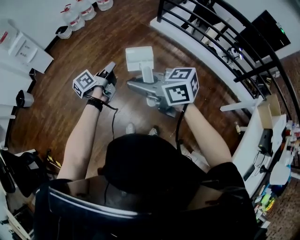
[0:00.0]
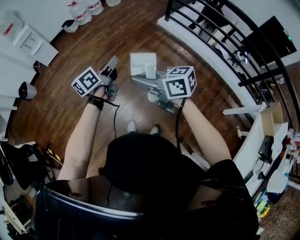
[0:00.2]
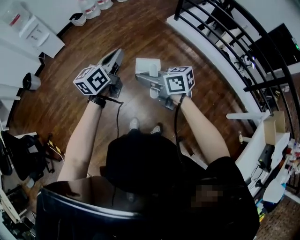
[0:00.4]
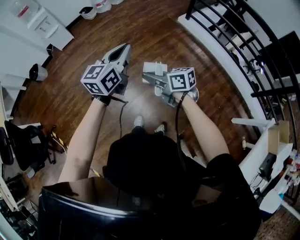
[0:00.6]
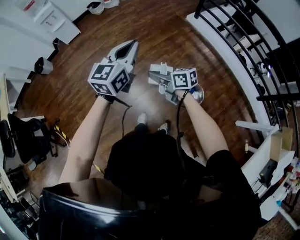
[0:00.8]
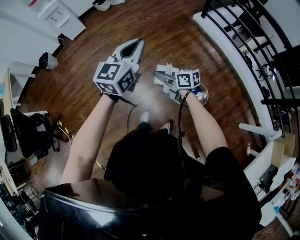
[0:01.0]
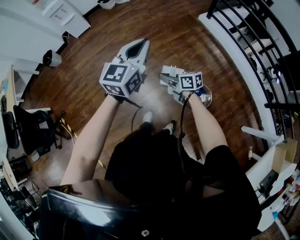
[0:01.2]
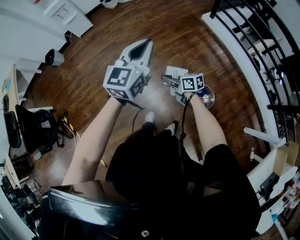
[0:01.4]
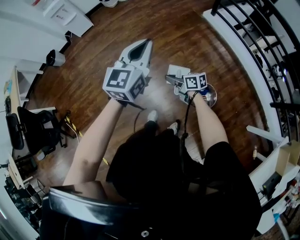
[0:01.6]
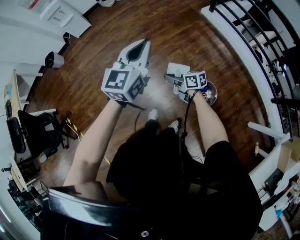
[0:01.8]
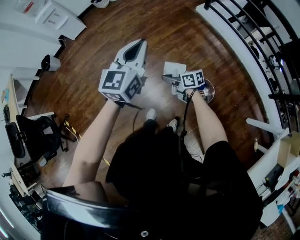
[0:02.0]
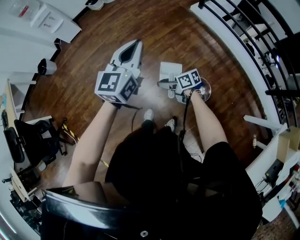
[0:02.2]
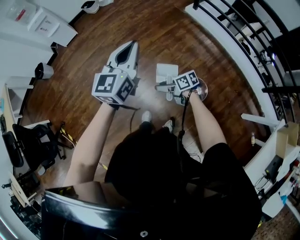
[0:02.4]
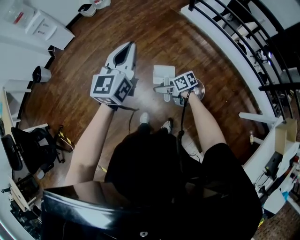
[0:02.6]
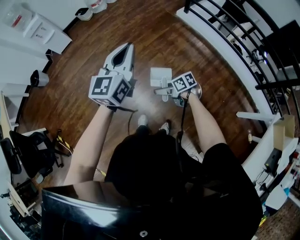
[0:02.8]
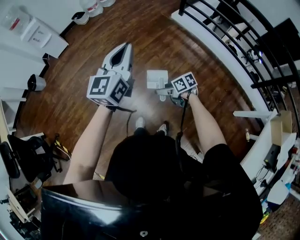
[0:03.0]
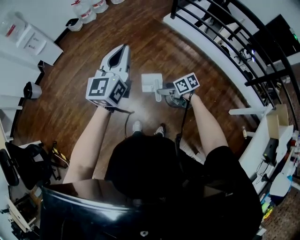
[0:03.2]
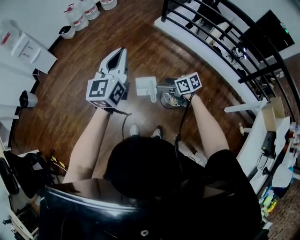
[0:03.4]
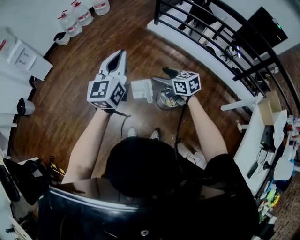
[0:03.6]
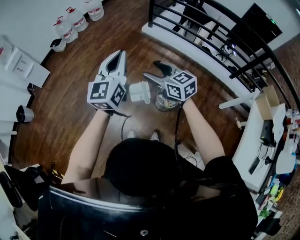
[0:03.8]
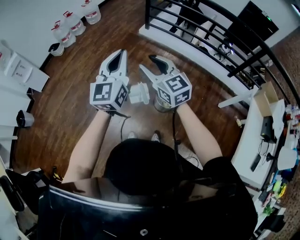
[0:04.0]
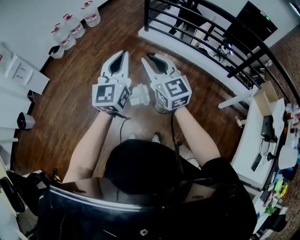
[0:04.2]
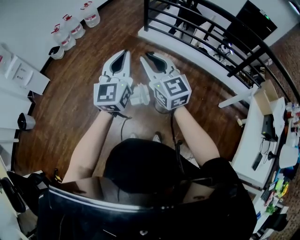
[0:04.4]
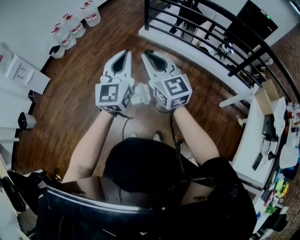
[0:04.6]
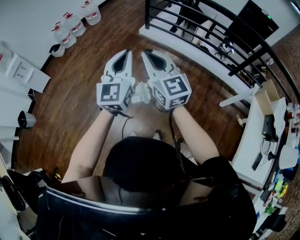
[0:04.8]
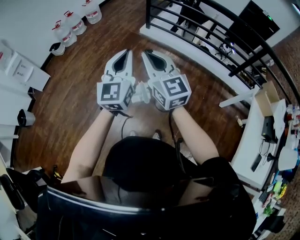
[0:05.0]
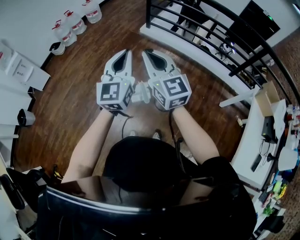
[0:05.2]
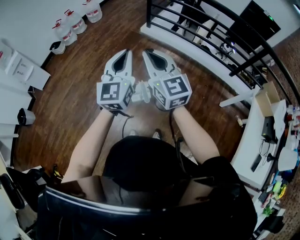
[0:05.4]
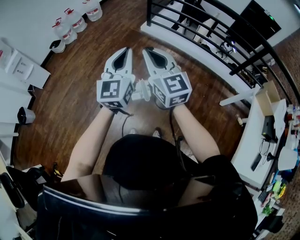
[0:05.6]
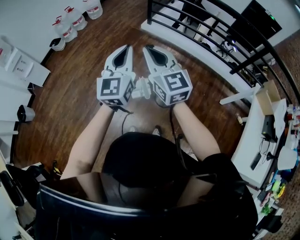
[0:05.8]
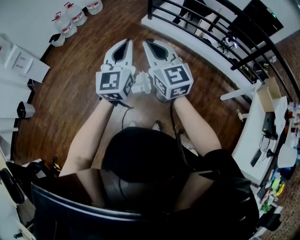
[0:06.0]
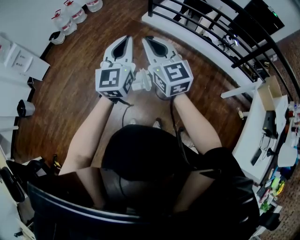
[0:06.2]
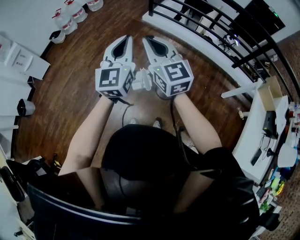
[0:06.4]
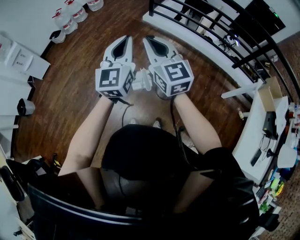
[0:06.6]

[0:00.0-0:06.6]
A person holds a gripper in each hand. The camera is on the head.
0:00.0 to 0:01.6: The left gripper heads upward, covering approximately 10 cm, and twists some 60 degrees clockwise, seen from behind, while the right gripper is displaced downward by about 30 cm, and rotates roughly 20 degrees.
0:01.6 to 0:03.2: The right gripper is displaced backward by about 10 cm, turns by about 20 degrees, and opens. The left gripper changes place by approximately 5 cm.
0:03.2 to 0:05.0: The right gripper travels upward by some 35 cm, points its fingers roughly 40 degrees further upward, and closes its fingers, while the left gripper shifts by about 10 cm.
0:05.0 to 0:06.6: Both grippers stay put.

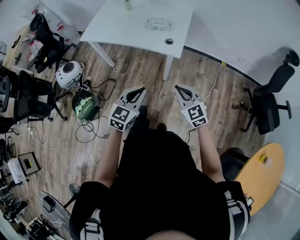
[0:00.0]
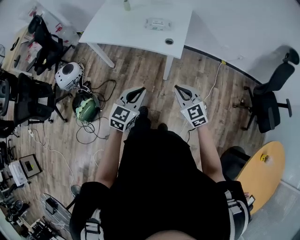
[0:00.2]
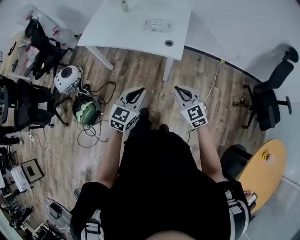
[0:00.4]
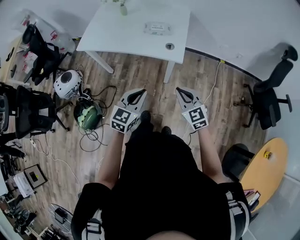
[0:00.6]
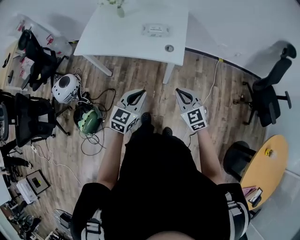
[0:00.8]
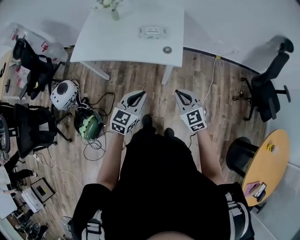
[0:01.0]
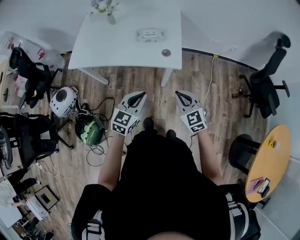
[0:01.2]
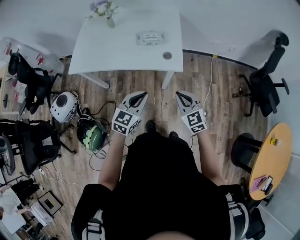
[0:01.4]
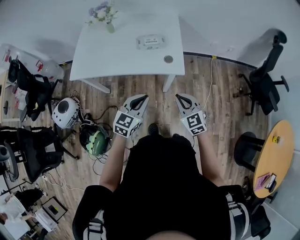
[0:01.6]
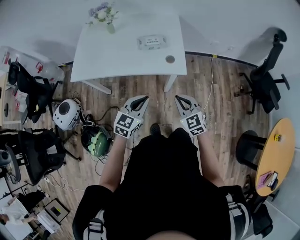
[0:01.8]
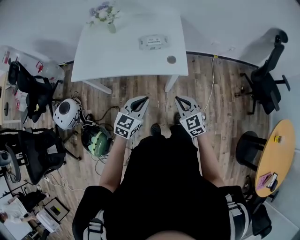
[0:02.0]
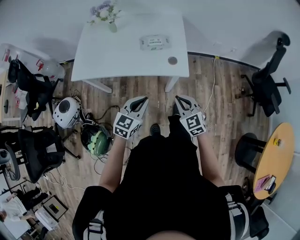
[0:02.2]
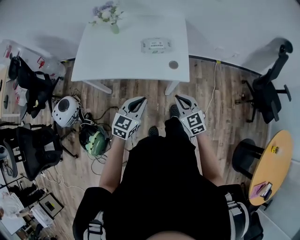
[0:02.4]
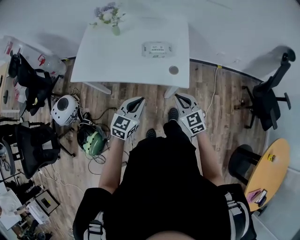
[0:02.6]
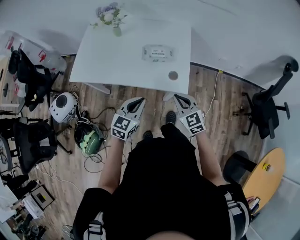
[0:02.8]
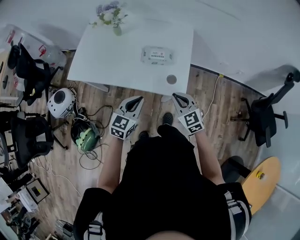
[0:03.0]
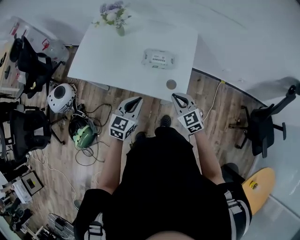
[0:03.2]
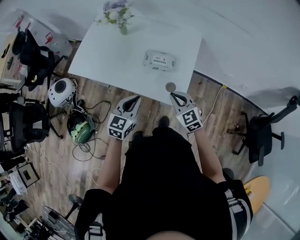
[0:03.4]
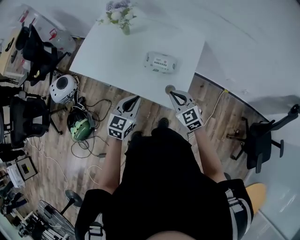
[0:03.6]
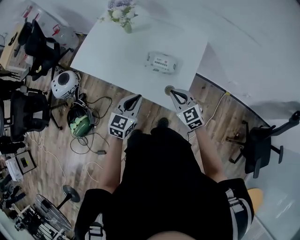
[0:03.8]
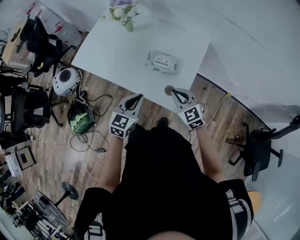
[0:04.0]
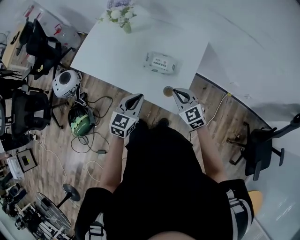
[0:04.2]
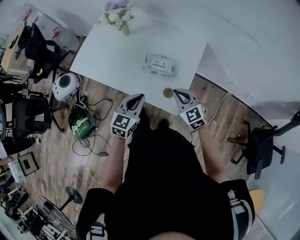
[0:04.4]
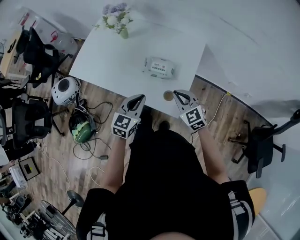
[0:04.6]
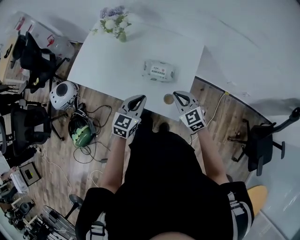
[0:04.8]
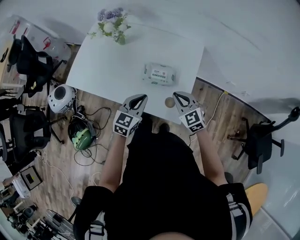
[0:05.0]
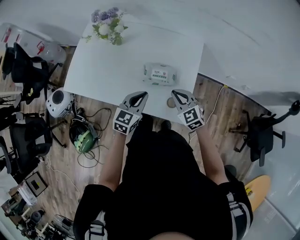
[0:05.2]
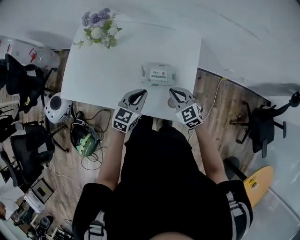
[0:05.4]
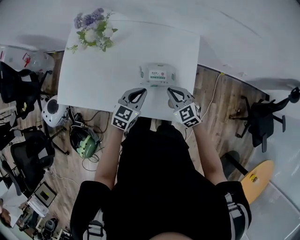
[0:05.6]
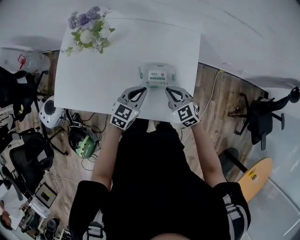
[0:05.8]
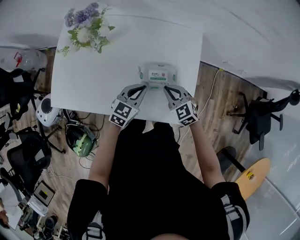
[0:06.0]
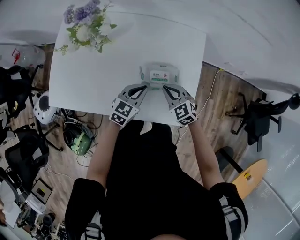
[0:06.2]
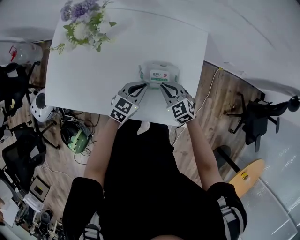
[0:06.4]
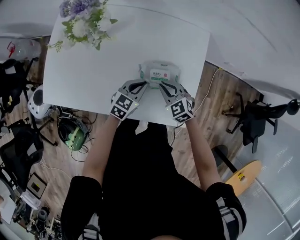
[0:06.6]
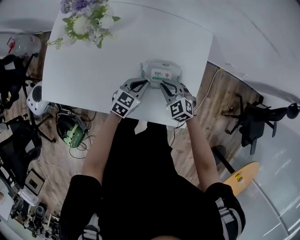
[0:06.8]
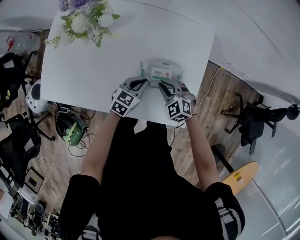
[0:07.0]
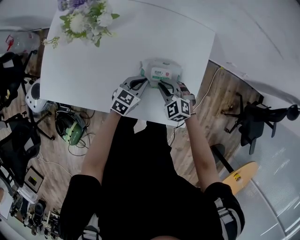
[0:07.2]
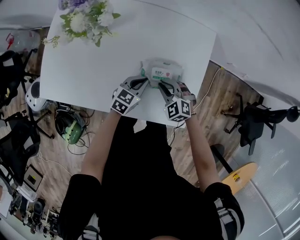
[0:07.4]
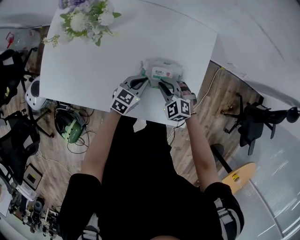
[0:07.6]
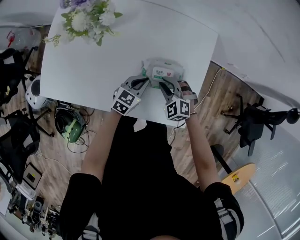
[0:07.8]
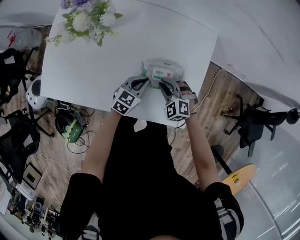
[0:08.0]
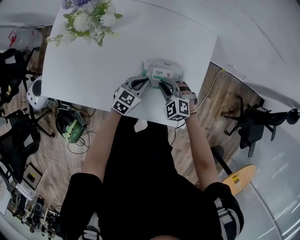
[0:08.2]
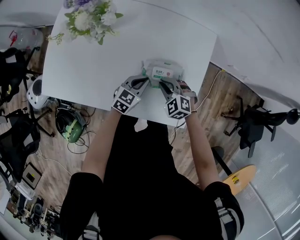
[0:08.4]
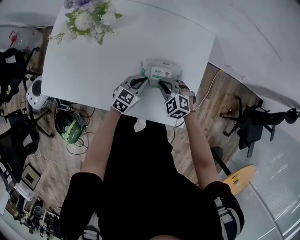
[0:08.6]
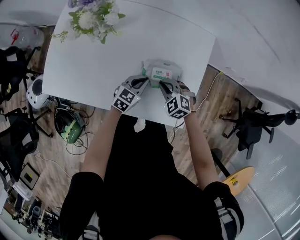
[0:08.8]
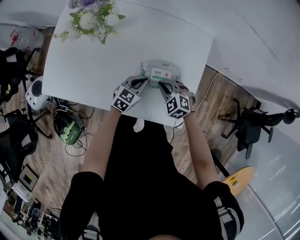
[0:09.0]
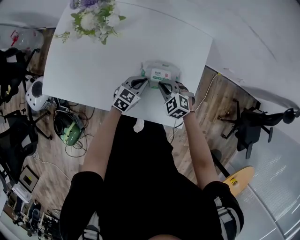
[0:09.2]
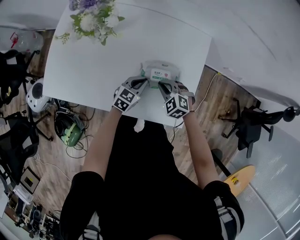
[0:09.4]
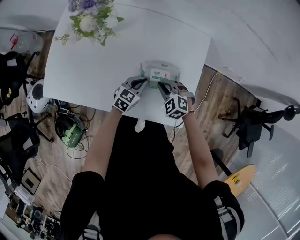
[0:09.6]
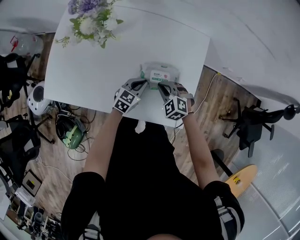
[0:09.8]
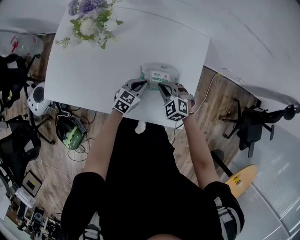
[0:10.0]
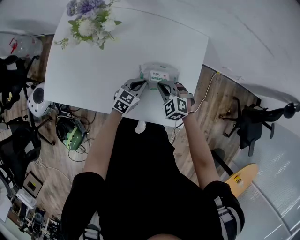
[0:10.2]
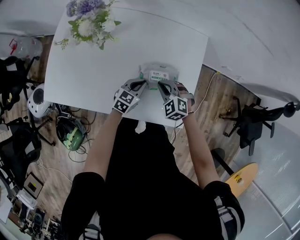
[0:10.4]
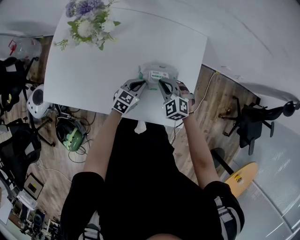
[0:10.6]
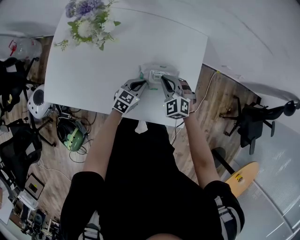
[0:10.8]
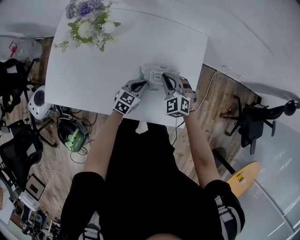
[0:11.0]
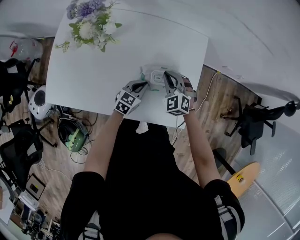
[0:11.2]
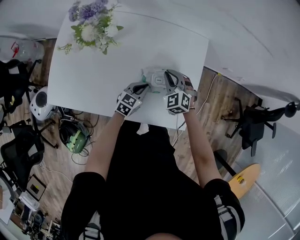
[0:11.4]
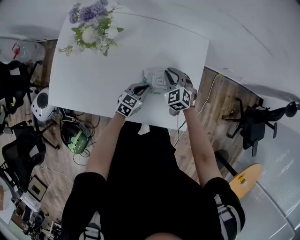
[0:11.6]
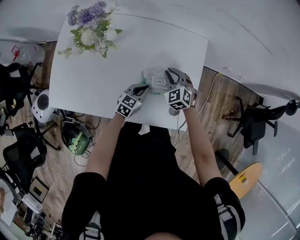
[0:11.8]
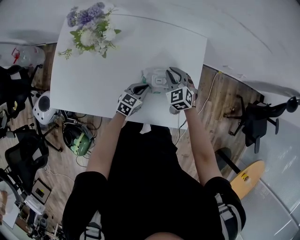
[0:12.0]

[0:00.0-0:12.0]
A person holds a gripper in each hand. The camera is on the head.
0:00.0 to 0:01.6: The grippers both shift forward and to the left by some 20 cm.
0:01.6 to 0:03.0: Both grippers move forward, about 20 cm.
0:03.0 to 0:04.4: The left gripper goes roughly 10 cm to the right and forward; the right gripper moves forward and to the right, approximately 15 cm.
0:04.4 to 0:06.0: The left gripper shifts some 25 cm forward and downward, and turns by some 30 degrees, while the right gripper shifts some 25 cm forward, downward and to the left.
0:06.0 to 0:07.6: The grippers both shift downward by about 10 cm. The right gripper turns by some 20 degrees.
0:07.6 to 0:10.4: The grippers move only a little.
0:10.4 to 0:12.0: The right gripper heads forward, covering about 10 cm, and changes its angle by roughly 20 degrees.

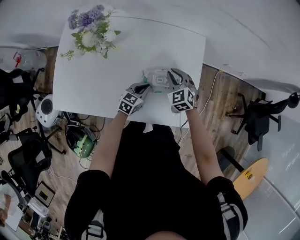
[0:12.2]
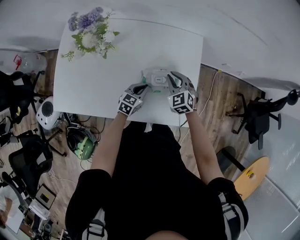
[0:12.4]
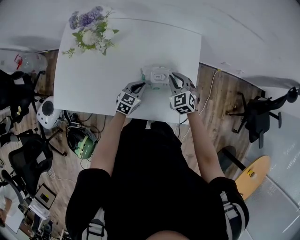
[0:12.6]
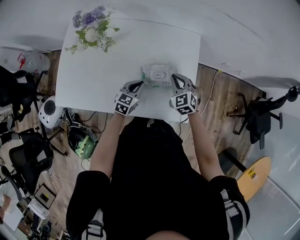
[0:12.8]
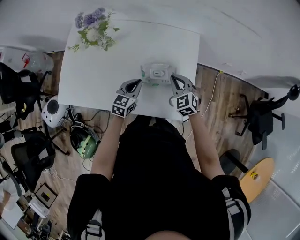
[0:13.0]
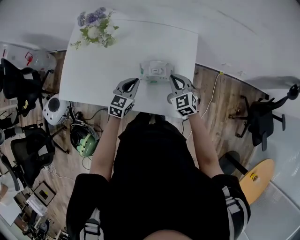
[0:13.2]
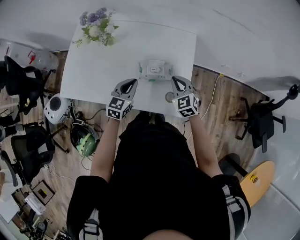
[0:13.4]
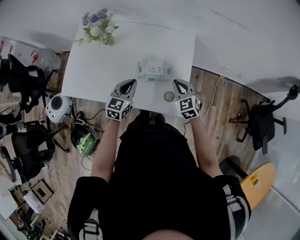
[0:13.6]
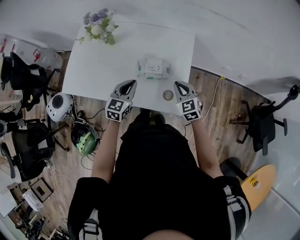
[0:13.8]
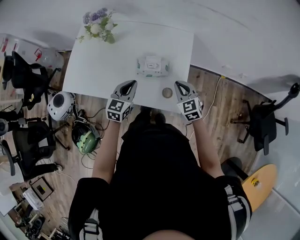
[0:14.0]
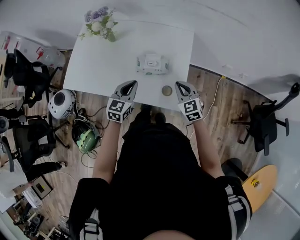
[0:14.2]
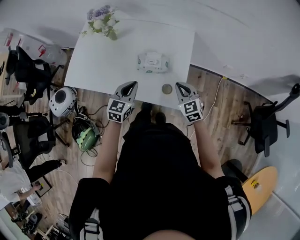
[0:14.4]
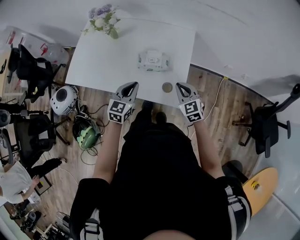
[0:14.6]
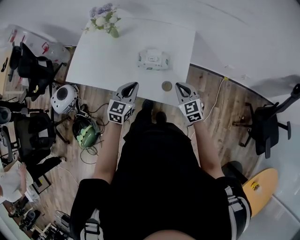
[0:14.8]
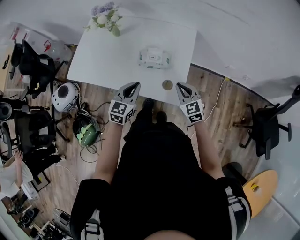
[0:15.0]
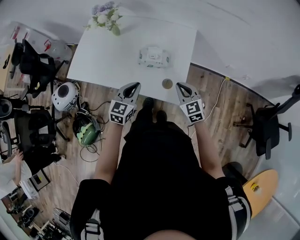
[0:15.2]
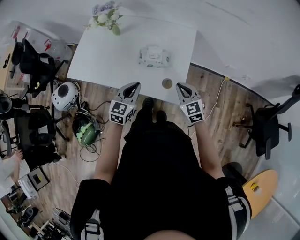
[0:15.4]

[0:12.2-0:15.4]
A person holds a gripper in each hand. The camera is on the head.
0:12.2 to 0:13.8: The right gripper goes roughly 25 cm backward, to the right and upward; the left gripper travels upward and backward by about 25 cm, and changes its angle by about 30 degrees.
0:13.8 to 0:15.4: Both grippers move backward, approximately 10 cm.

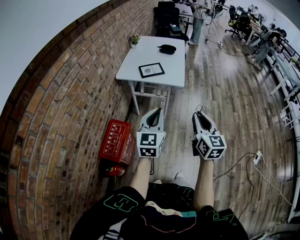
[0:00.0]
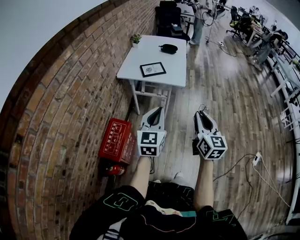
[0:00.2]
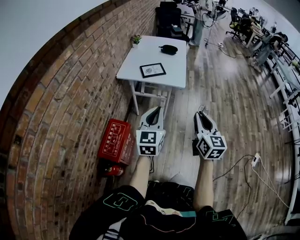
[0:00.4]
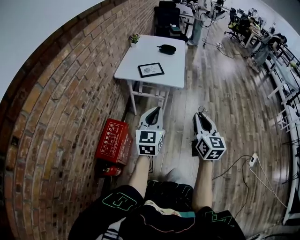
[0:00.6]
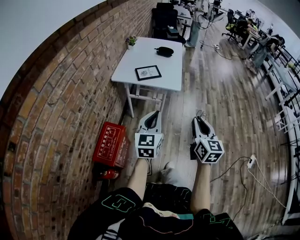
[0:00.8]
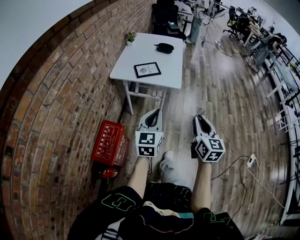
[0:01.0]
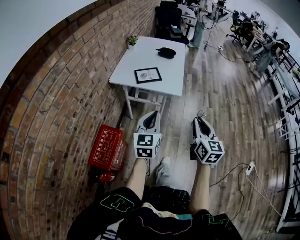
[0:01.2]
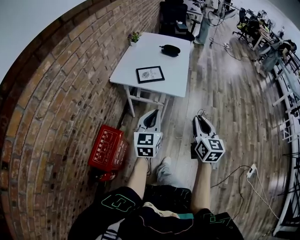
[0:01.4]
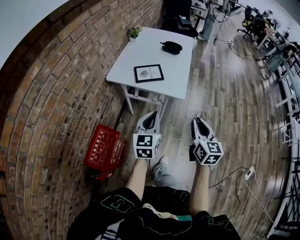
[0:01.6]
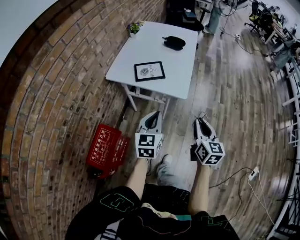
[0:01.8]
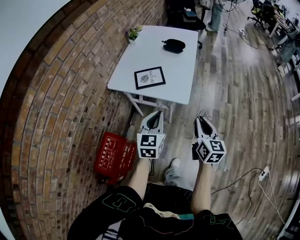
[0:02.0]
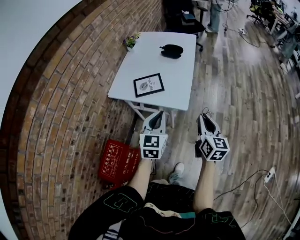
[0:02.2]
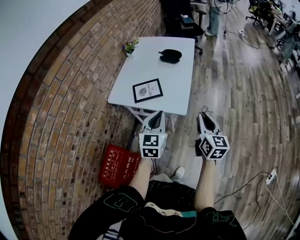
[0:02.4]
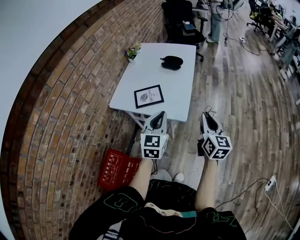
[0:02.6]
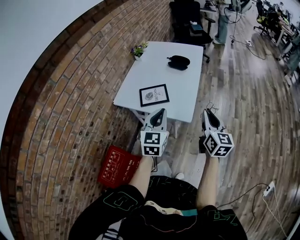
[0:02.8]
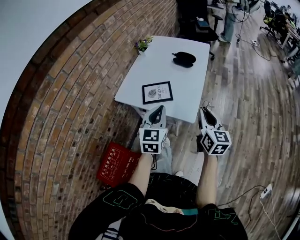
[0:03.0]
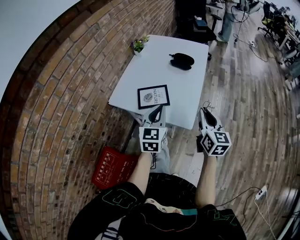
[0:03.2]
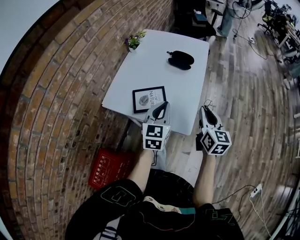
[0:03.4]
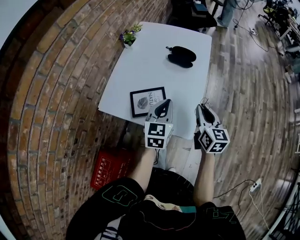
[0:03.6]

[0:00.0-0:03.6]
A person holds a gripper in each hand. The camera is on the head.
0:00.0 to 0:01.8: The left gripper travels forward and downward by some 25 cm; the right gripper is displaced forward by roughly 25 cm.
0:01.8 to 0:03.6: The grippers both shift forward by approximately 35 cm.
